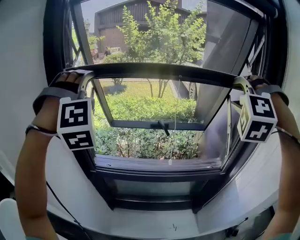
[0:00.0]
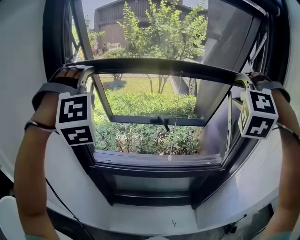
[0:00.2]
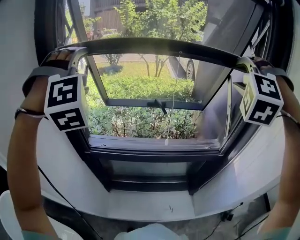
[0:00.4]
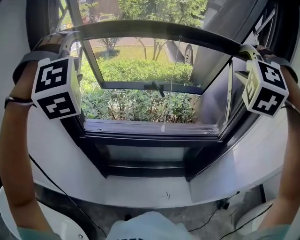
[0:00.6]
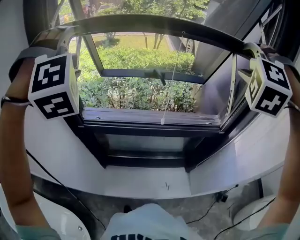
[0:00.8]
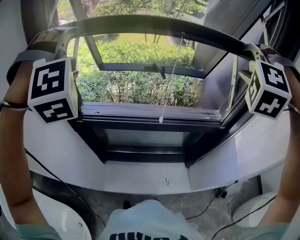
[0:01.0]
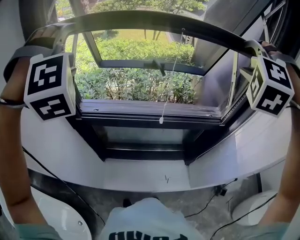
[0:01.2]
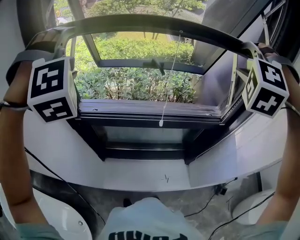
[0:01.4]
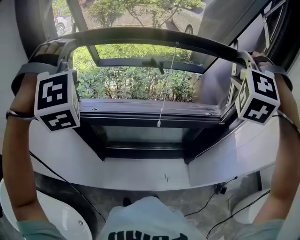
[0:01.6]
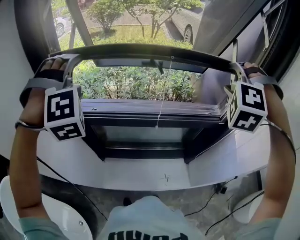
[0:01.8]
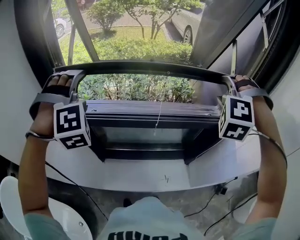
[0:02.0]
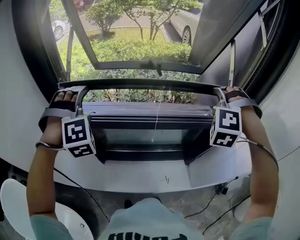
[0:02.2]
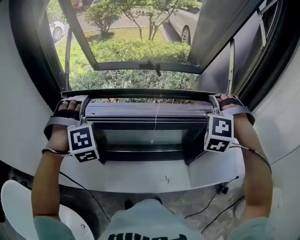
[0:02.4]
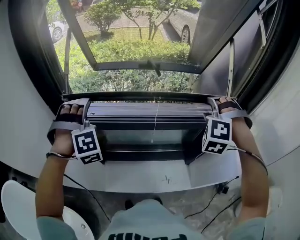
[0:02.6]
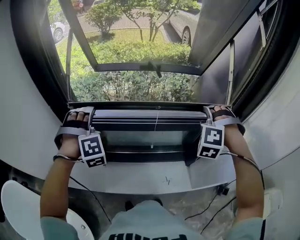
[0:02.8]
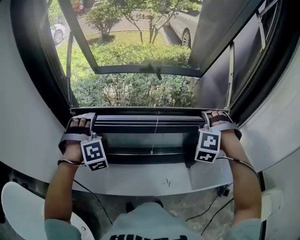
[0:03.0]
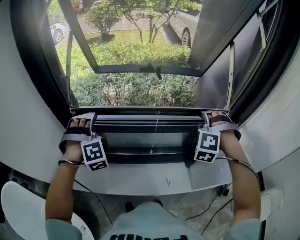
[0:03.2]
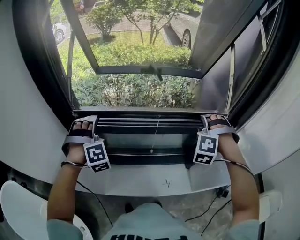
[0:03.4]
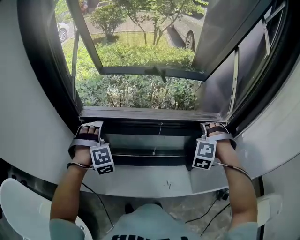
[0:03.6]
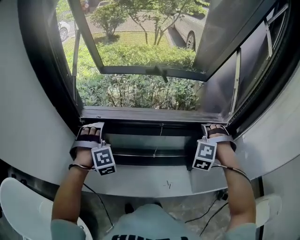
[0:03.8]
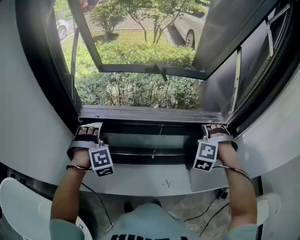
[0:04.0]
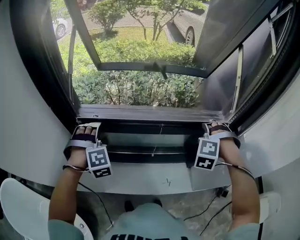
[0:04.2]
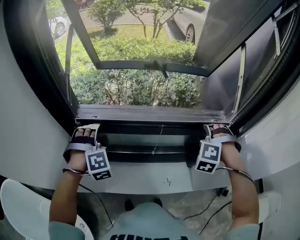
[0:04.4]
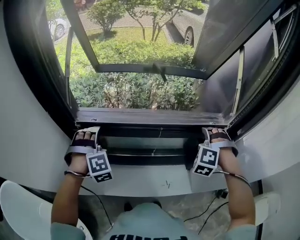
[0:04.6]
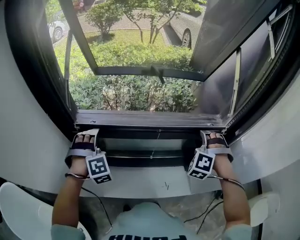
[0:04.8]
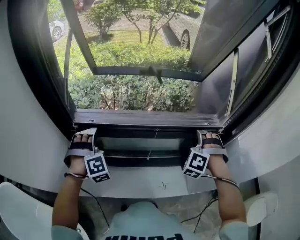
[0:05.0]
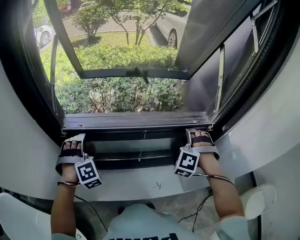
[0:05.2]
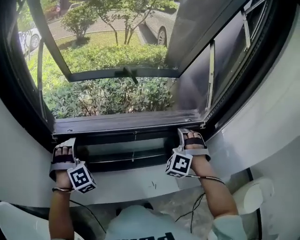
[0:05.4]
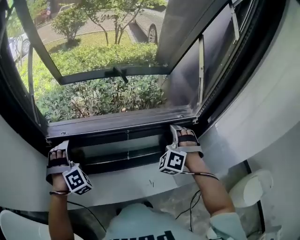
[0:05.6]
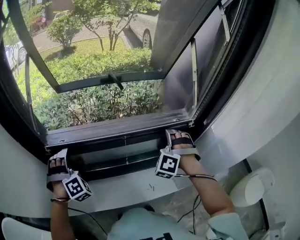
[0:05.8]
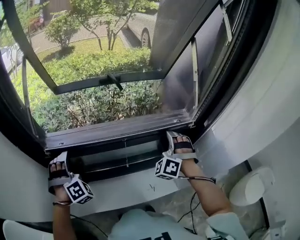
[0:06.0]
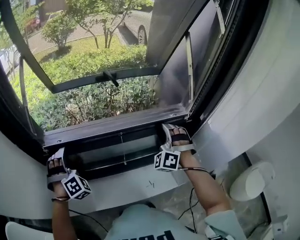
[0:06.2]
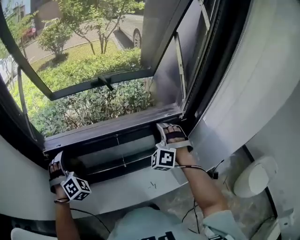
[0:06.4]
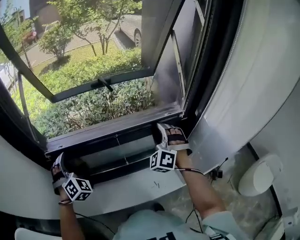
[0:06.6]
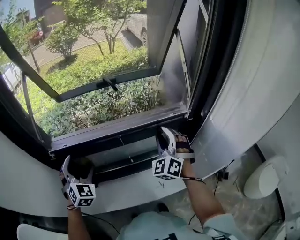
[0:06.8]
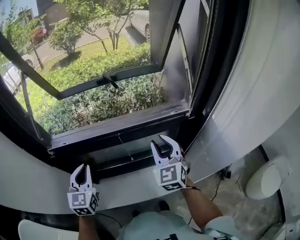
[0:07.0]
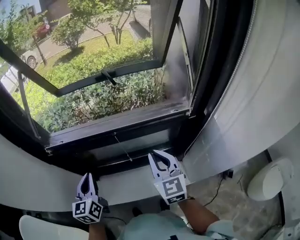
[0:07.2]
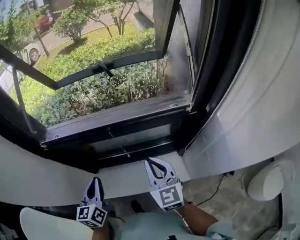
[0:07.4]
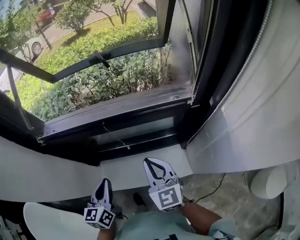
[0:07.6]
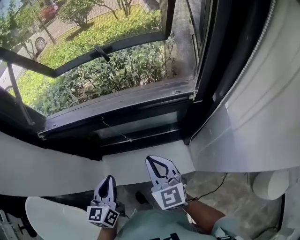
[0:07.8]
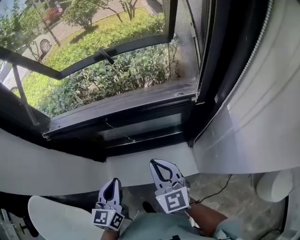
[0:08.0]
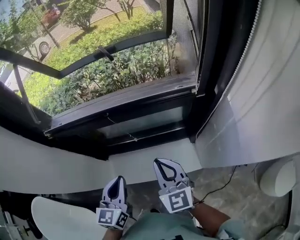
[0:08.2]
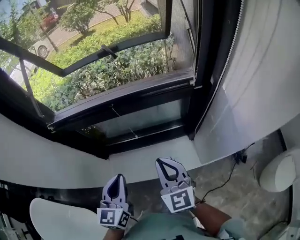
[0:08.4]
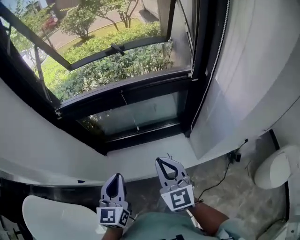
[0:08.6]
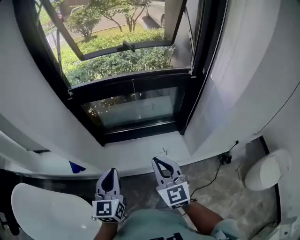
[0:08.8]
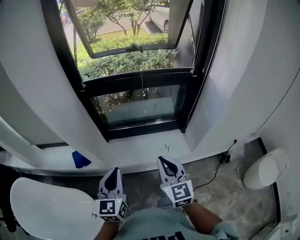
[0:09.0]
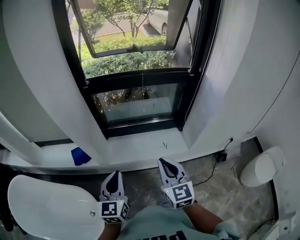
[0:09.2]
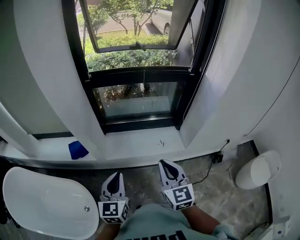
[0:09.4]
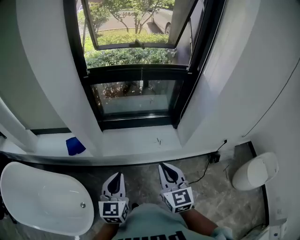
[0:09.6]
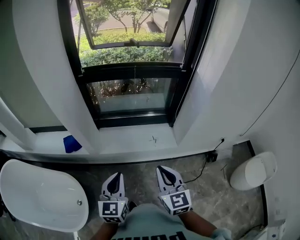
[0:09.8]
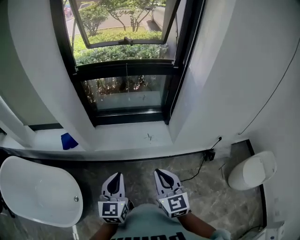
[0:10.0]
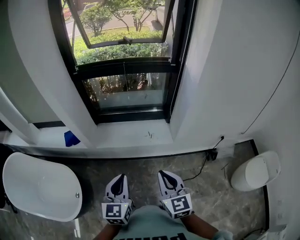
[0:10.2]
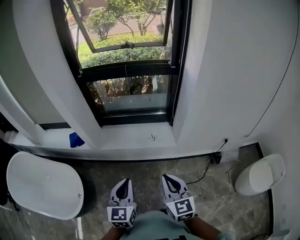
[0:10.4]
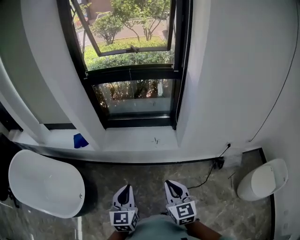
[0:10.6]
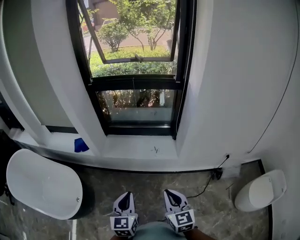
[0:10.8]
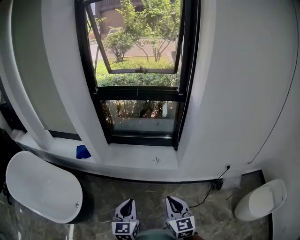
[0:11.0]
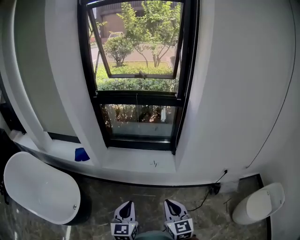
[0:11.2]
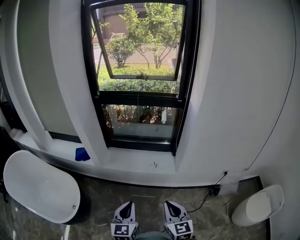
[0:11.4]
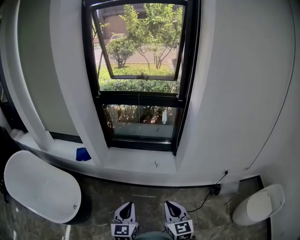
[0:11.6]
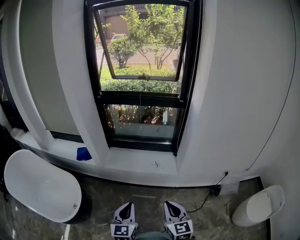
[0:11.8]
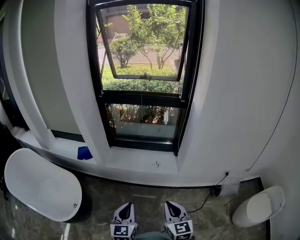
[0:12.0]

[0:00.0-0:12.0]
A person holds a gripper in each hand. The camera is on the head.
0:00.0 to 0:01.6: Both grippers travel together downward, approximately 15 cm.
0:01.6 to 0:03.0: Both grippers move downward, approximately 25 cm.
0:03.0 to 0:04.4: The grippers both shift downward by some 5 cm.
0:04.4 to 0:06.0: The right gripper changes its angle by approximately 30 degrees.
0:06.0 to 0:07.6: The right gripper travels backward by roughly 15 cm, twists about 70 degrees clockwise, seen from behind, and closes, while the left gripper heads to the right and backward, covering roughly 20 cm, twists roughly 90 degrees counterclockwise, seen from behind, and closes up.
0:07.6 to 0:09.0: Both grippers move backward, approximately 30 cm.
0:09.0 to 0:10.4: The two grippers go roughly 30 cm backward and to the right.
0:10.4 to 0:12.0: The two grippers go some 5 cm backward.

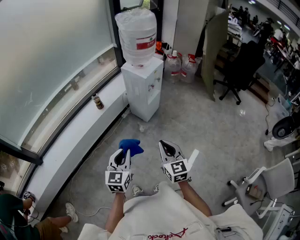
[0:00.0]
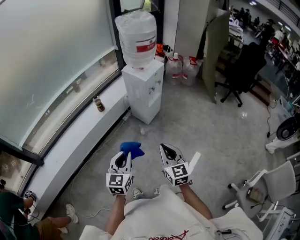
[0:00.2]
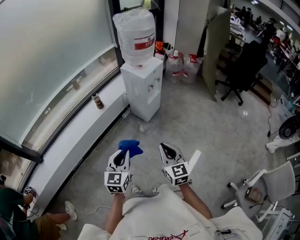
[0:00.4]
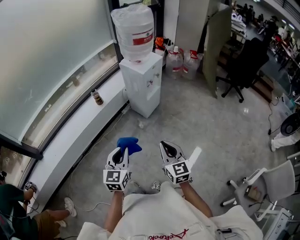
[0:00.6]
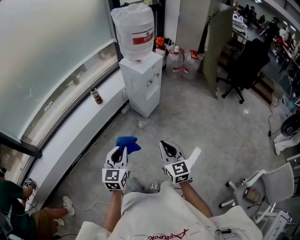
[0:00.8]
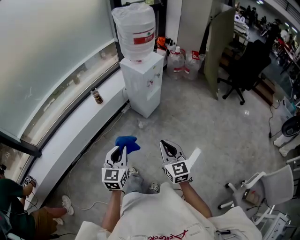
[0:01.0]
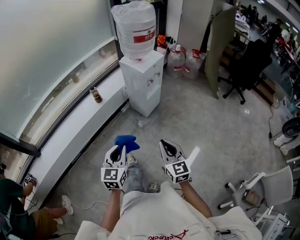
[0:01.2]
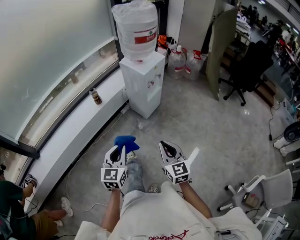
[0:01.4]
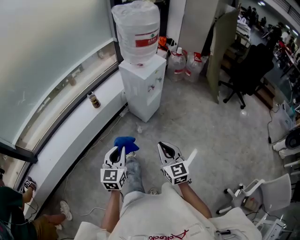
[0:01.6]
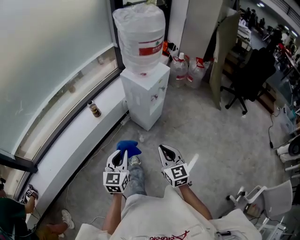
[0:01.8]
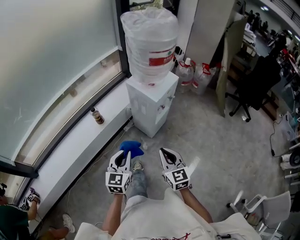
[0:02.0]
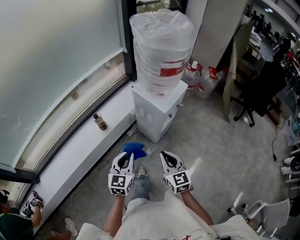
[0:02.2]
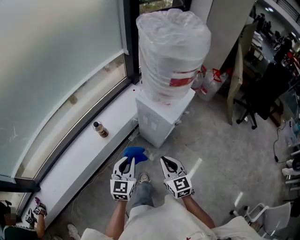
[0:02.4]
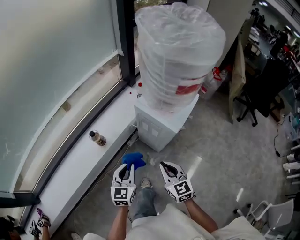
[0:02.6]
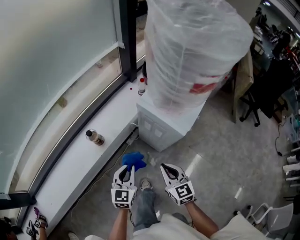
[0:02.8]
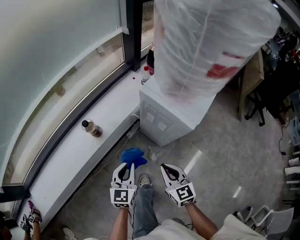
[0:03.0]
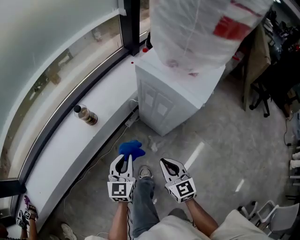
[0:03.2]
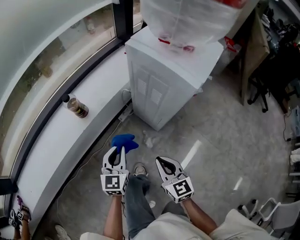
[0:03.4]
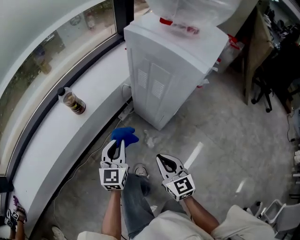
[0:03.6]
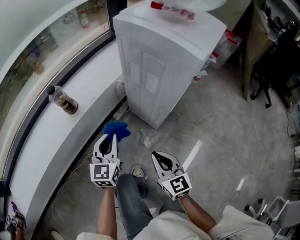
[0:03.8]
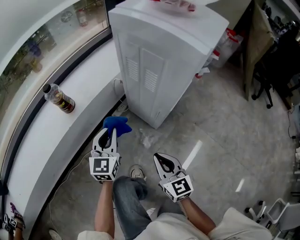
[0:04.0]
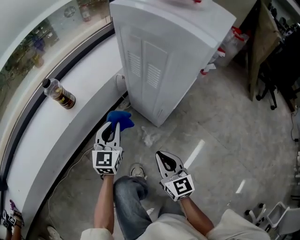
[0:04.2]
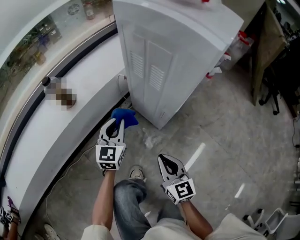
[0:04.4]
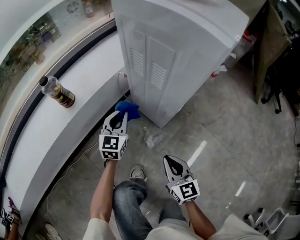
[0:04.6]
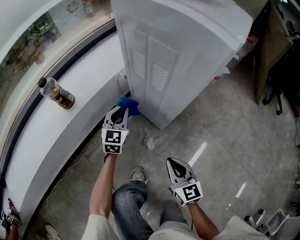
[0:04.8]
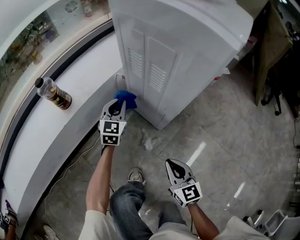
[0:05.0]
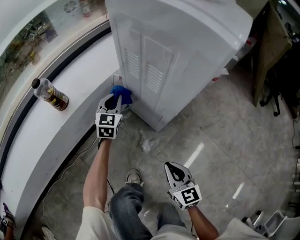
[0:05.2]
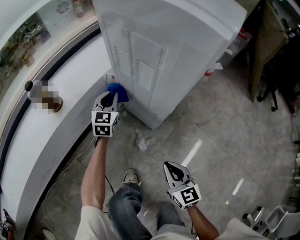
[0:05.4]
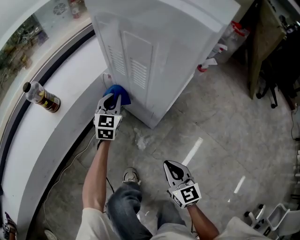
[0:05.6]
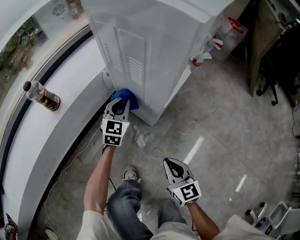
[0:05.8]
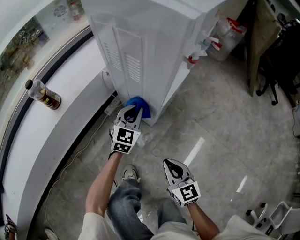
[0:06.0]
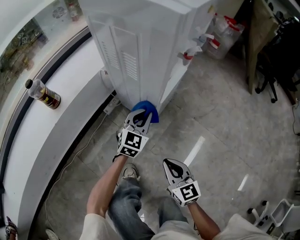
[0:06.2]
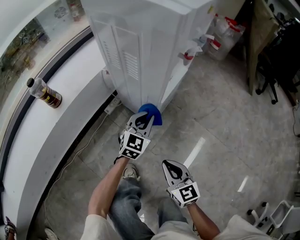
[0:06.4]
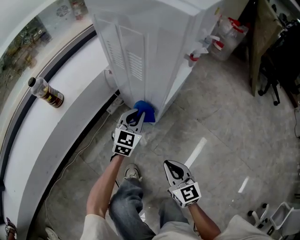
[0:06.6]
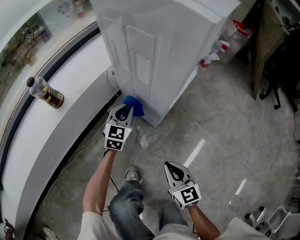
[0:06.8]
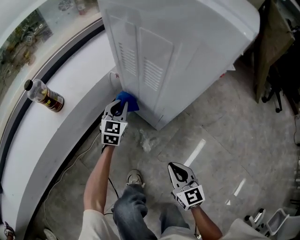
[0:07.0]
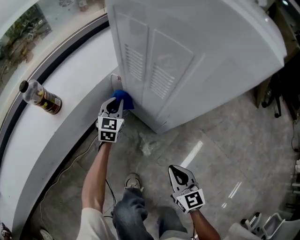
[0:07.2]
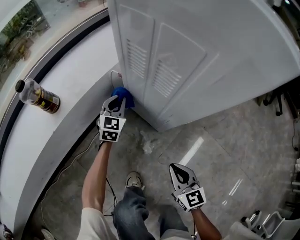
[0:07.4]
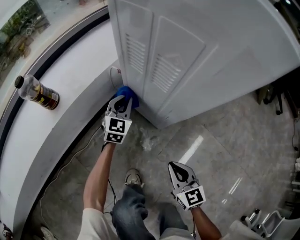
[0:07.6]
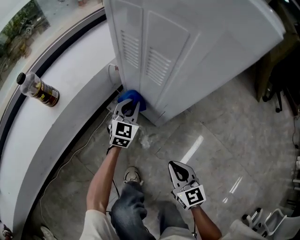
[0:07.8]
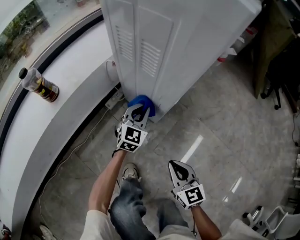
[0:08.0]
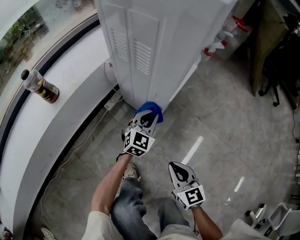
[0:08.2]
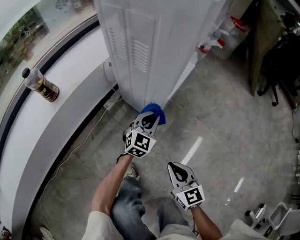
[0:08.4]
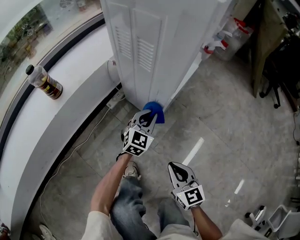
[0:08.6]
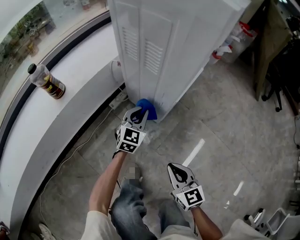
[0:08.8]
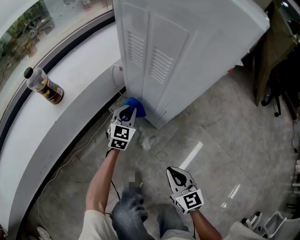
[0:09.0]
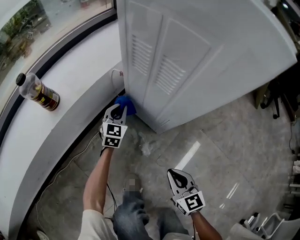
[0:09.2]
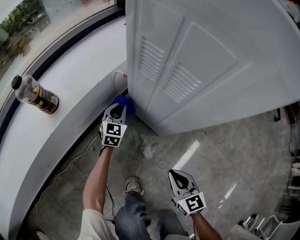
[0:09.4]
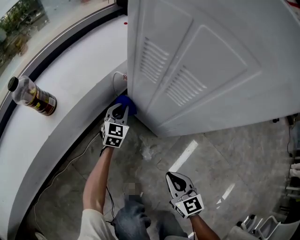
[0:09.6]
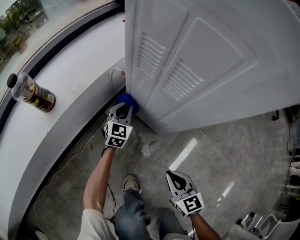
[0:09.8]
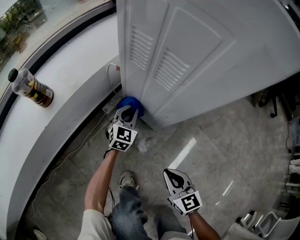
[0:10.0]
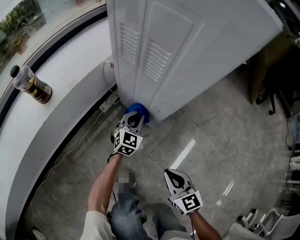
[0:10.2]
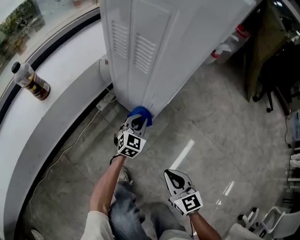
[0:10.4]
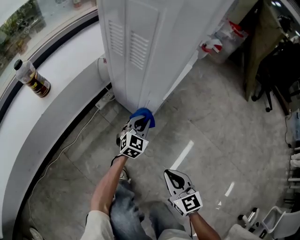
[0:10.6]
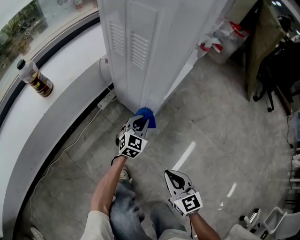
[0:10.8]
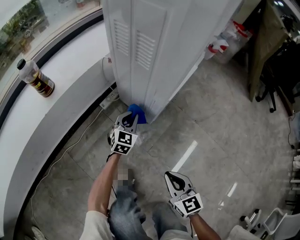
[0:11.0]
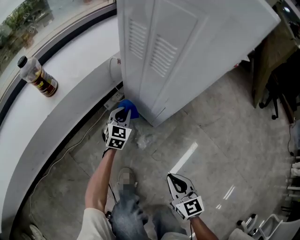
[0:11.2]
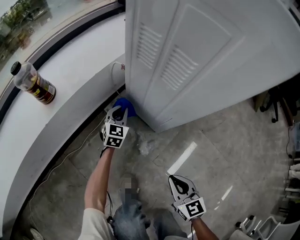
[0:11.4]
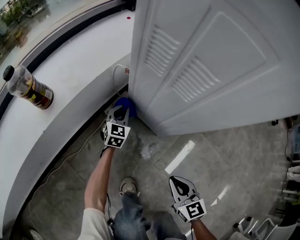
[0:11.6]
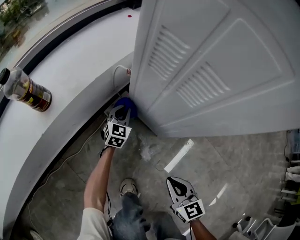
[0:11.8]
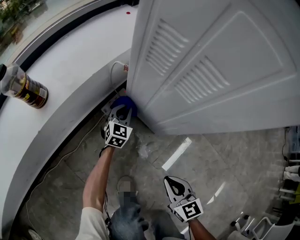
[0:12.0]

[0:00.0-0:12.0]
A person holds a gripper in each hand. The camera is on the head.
0:00.0 to 0:01.6: Both grippers move forward, some 10 cm.
0:01.6 to 0:03.0: The two grippers go some 40 cm forward and downward.
0:03.0 to 0:04.4: The grippers both shift downward by about 25 cm.
0:04.4 to 0:06.0: The right gripper heads to the right, covering roughly 5 cm. Meanwhile the left gripper shifts approximately 15 cm to the right, and swivels about 20 degrees.
0:06.0 to 0:07.6: The left gripper swings left and right, approximately 20 cm each way, with 2 reversals; the right gripper is displaced forward by some 5 cm.
0:07.6 to 0:09.0: The two grippers go about 5 cm backward. The left gripper travels to the right and back again, some 15 cm each way.
0:09.0 to 0:10.4: The left gripper travels to the right and backward by about 15 cm.
0:10.4 to 0:12.0: The left gripper travels to the left, forward and downward by roughly 20 cm. The right gripper heads forward and to the left, covering some 10 cm.
